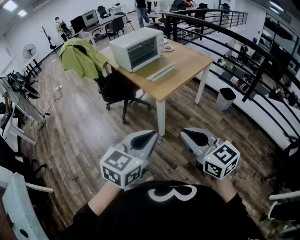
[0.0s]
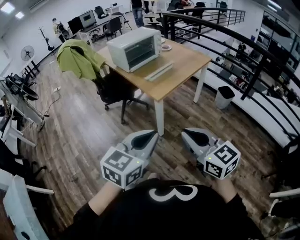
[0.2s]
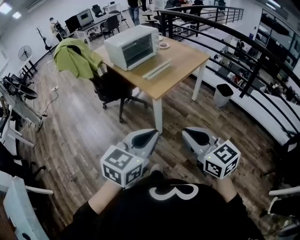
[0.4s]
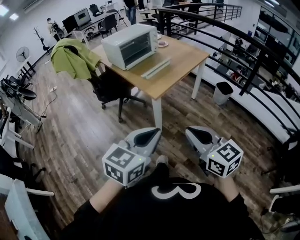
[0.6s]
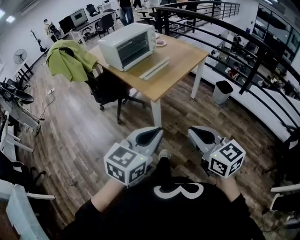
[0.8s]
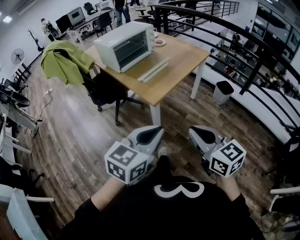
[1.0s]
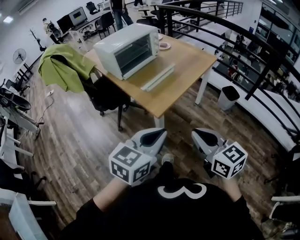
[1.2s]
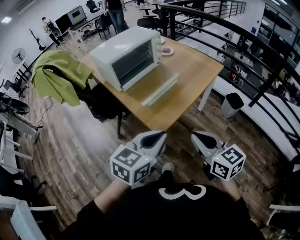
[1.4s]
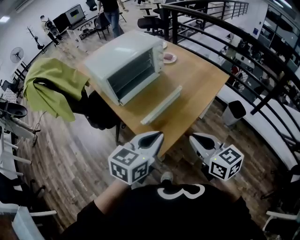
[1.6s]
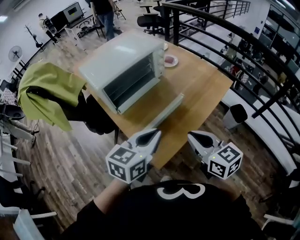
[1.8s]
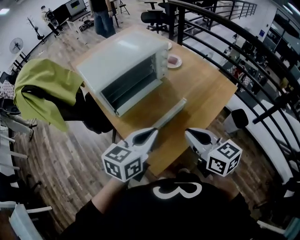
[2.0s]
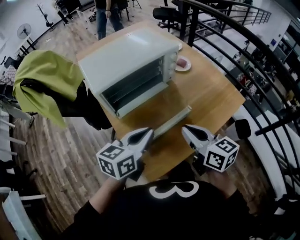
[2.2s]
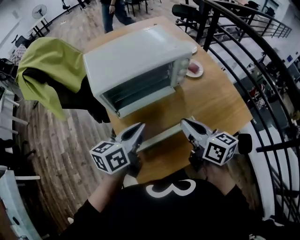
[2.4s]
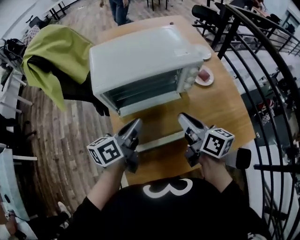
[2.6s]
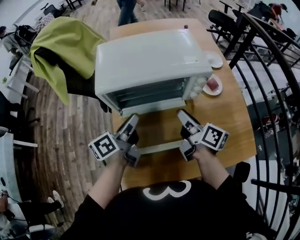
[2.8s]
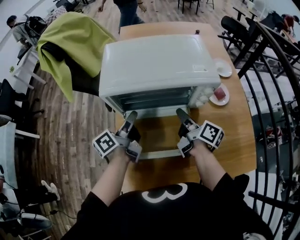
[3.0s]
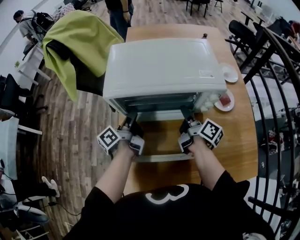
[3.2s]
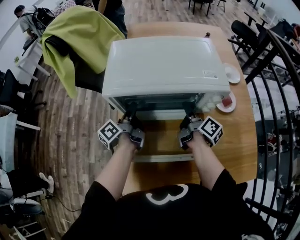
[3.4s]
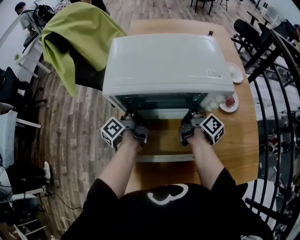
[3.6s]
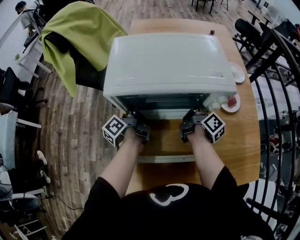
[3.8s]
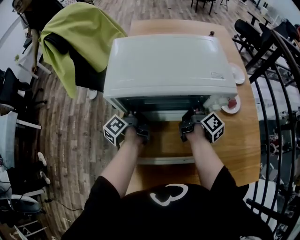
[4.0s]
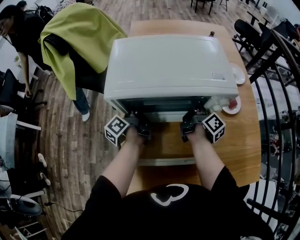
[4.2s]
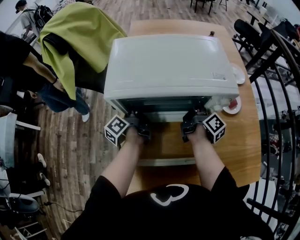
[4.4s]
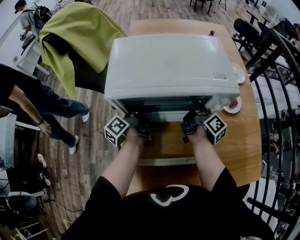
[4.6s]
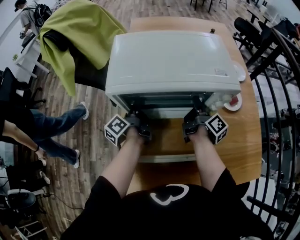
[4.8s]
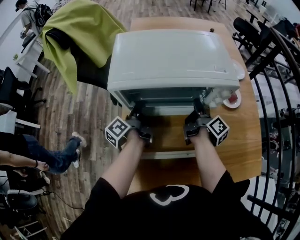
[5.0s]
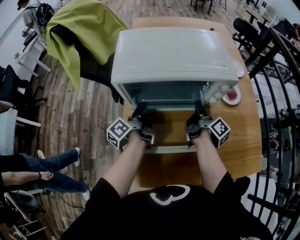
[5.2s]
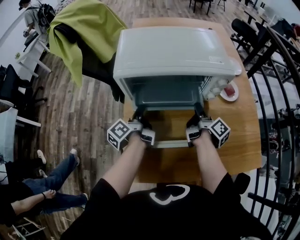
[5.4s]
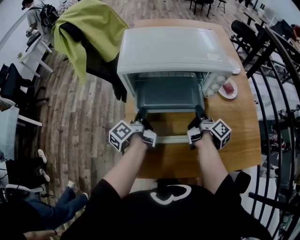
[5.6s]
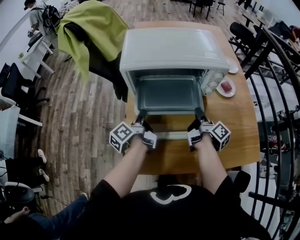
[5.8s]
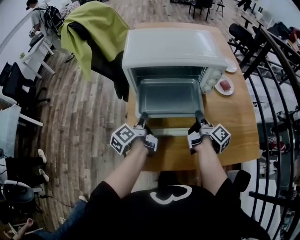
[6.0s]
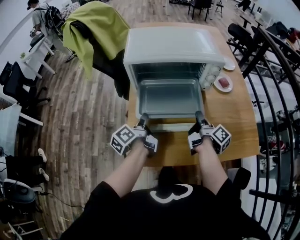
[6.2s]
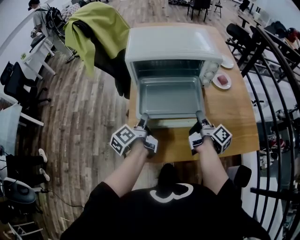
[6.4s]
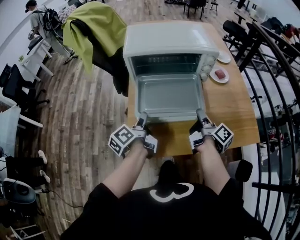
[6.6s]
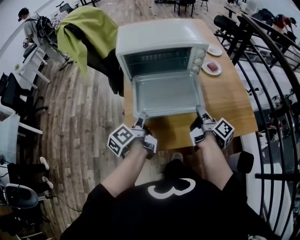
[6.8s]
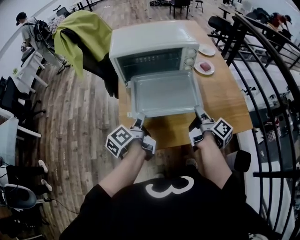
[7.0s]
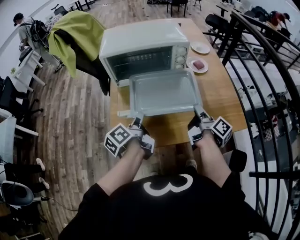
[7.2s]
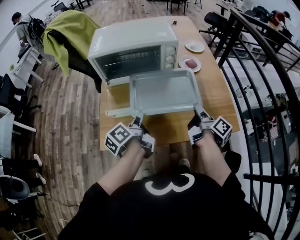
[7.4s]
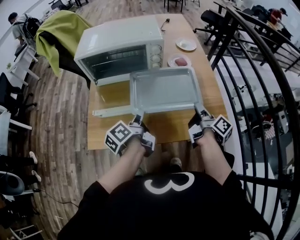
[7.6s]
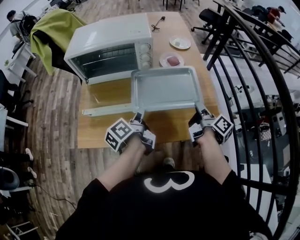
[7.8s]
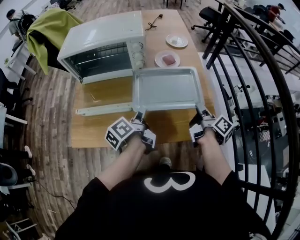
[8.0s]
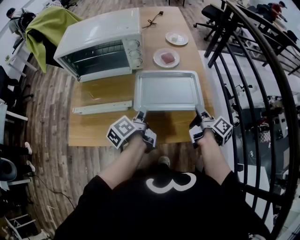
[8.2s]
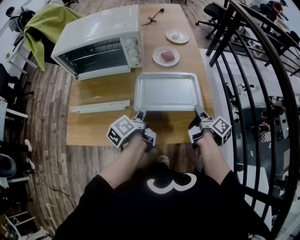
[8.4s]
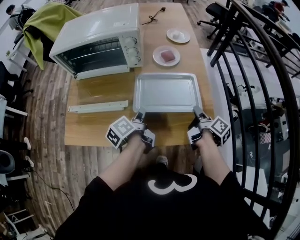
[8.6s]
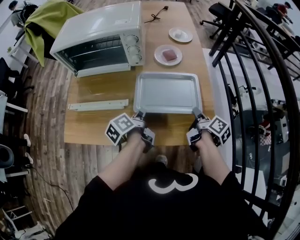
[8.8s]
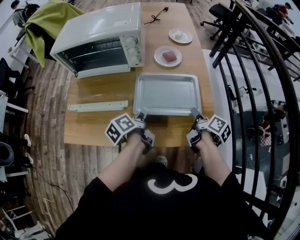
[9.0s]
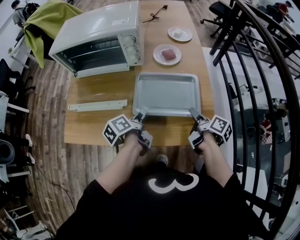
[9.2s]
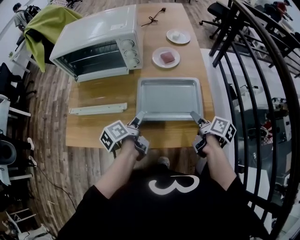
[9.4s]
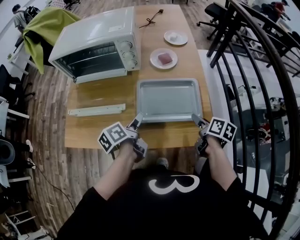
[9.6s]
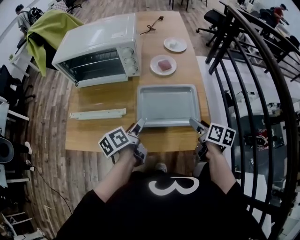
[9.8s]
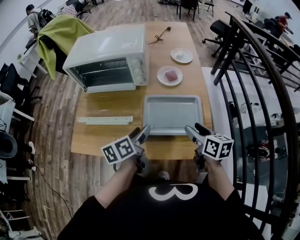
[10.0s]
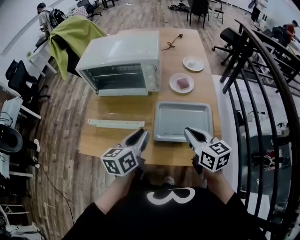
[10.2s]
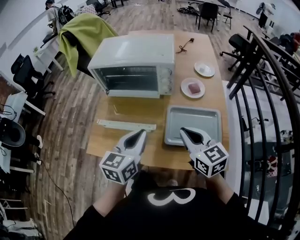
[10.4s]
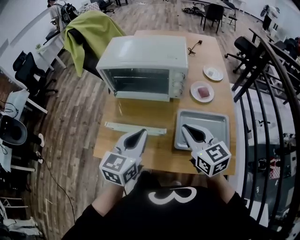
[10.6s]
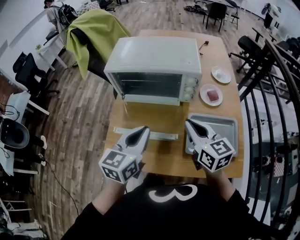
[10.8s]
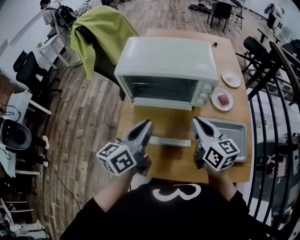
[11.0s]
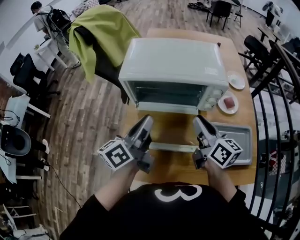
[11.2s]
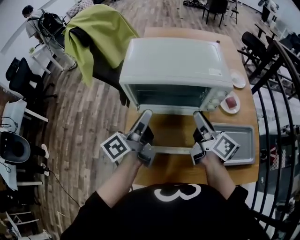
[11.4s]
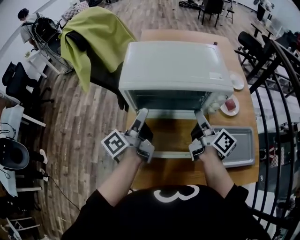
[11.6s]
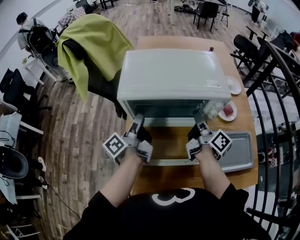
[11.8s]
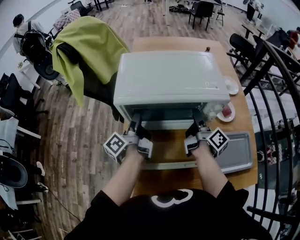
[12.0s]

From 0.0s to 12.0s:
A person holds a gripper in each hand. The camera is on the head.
From 0.0s to 1.6s: Both grippers are carried forward, about 50 cm.
From 1.6s to 3.0s: The left gripper moves approximately 40 cm, turns by approximately 90 degrees, and opens up. Meanwhile the right gripper moves about 50 cm, rotates around the line of its fingers by about 50 degrees, clockwise from behind, and opens its fingers.
From 3.0s to 4.4s: The left gripper travels forward, downward and to the left by about 15 cm, and swivels approximately 20 degrees. The right gripper goes some 10 cm forward and downward, and changes its angle by some 20 degrees.
From 4.4s to 6.0s: Both grippers move backward, approximately 20 cm.
From 6.0s to 7.6s: Both grippers move to the right and backward, roughly 30 cm.
From 7.6s to 9.0s: Both grippers travel together to the right and downward, roughly 15 cm. The right gripper changes its angle by approximately 20 degrees.
From 9.0s to 10.4s: The left gripper shifts some 20 cm upward and to the left, twists about 60 degrees clockwise, seen from behind, and opens and closes again. The right gripper is displaced to the left and upward by approximately 25 cm, rolls counterclockwise, seen from behind, by approximately 70 degrees, and closes its fingers.
From 10.4s to 12.0s: Both grippers travel together forward and to the left, about 35 cm. The left gripper twists approximately 70 degrees counterclockwise, seen from behind, and opens. The right gripper twists about 70 degrees clockwise, seen from behind, and opens its fingers.

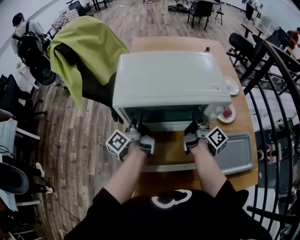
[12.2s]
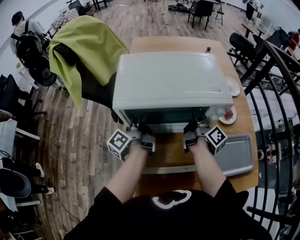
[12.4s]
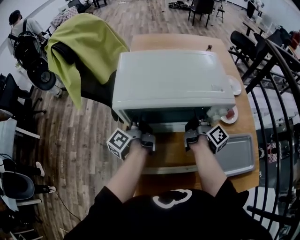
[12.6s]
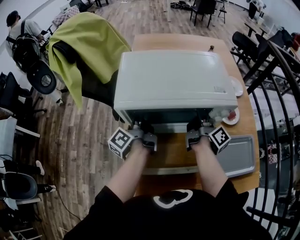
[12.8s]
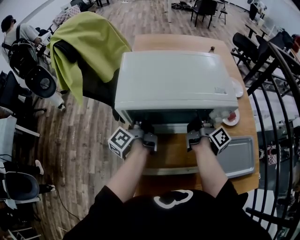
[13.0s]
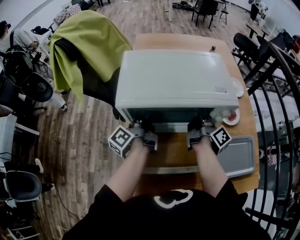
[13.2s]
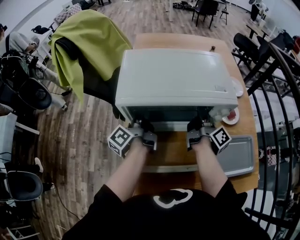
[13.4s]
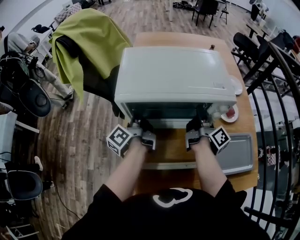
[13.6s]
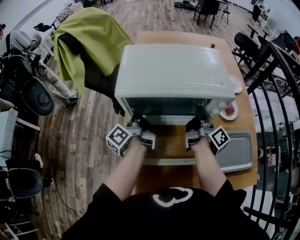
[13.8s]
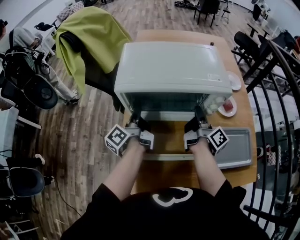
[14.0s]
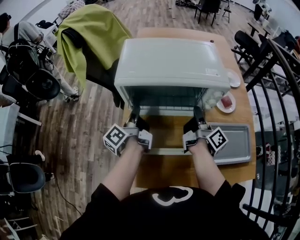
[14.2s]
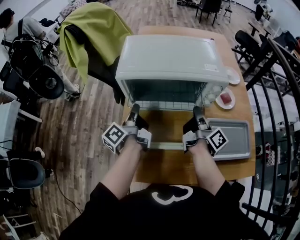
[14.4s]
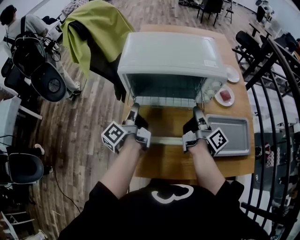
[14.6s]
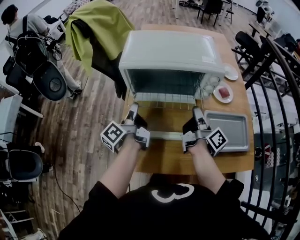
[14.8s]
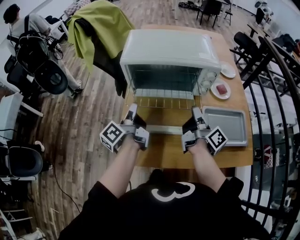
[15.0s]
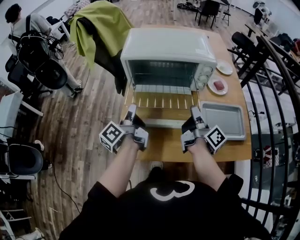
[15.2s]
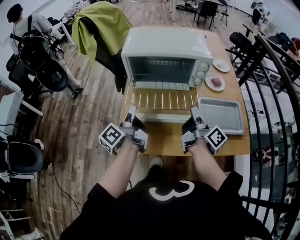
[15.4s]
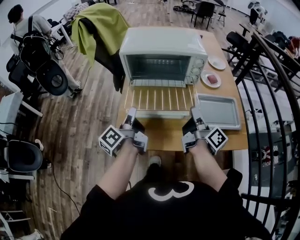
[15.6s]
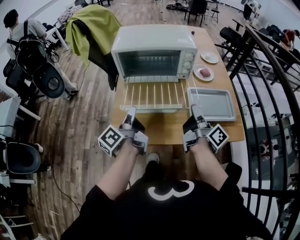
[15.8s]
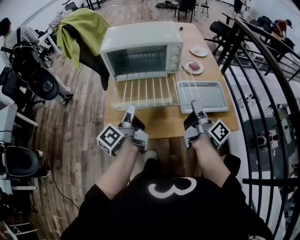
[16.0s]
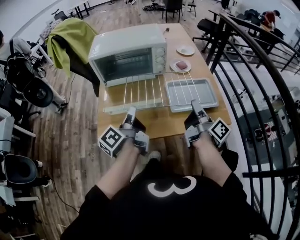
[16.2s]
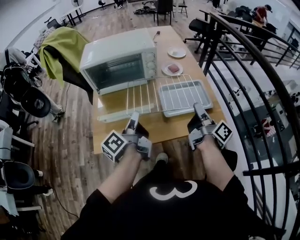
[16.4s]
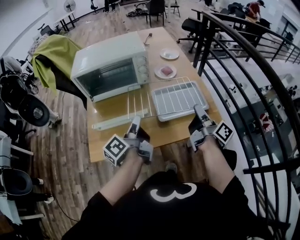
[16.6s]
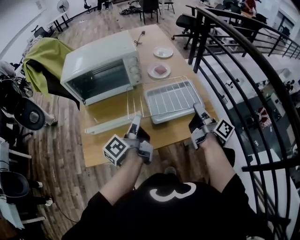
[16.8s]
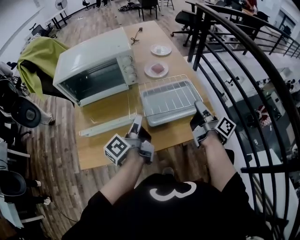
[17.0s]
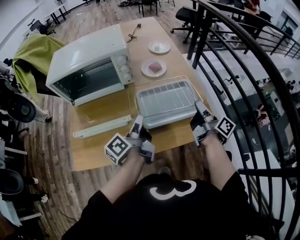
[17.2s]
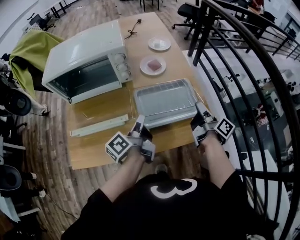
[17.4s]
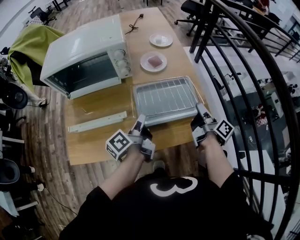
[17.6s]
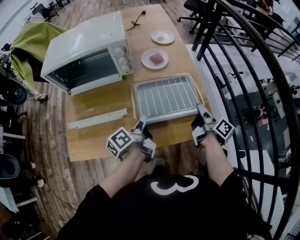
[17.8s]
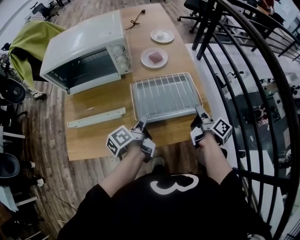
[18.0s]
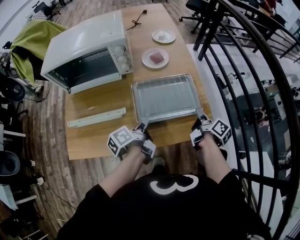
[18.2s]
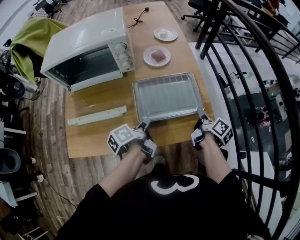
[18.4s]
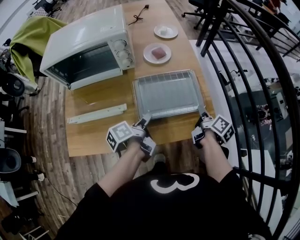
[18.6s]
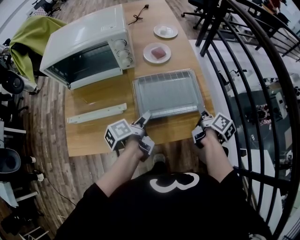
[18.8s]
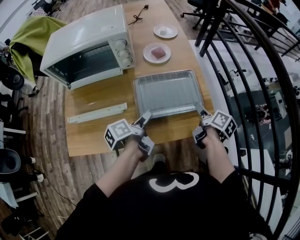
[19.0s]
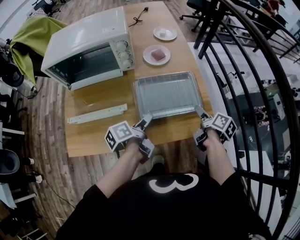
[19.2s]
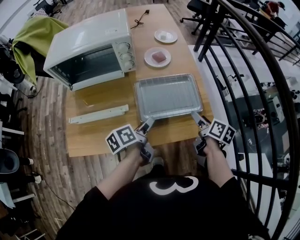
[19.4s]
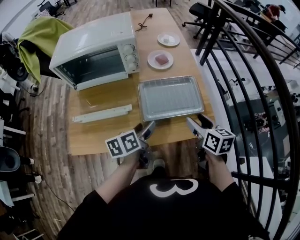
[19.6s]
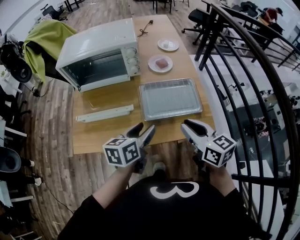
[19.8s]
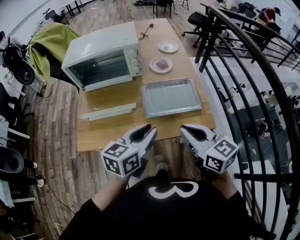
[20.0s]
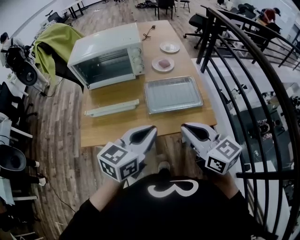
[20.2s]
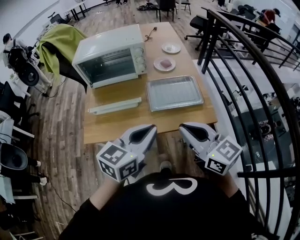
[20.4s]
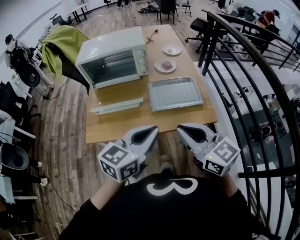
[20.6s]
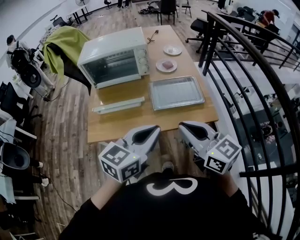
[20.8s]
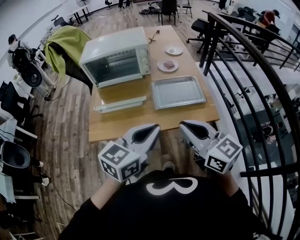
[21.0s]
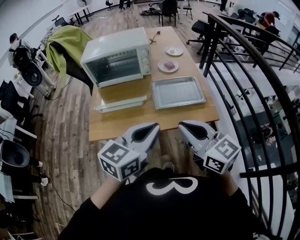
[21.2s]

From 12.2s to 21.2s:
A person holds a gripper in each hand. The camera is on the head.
From 12.2s to 13.8s: The right gripper closes its fingers; the left gripper closes.
From 13.8s to 15.2s: The two grippers go about 20 cm backward.
From 15.2s to 16.6s: The two grippers go some 25 cm to the right and backward.
From 16.6s to 18.2s: The right gripper goes about 25 cm downward, to the right and forward, and turns by approximately 30 degrees. The left gripper moves to the right, downward and forward, about 25 cm, and turns by roughly 30 degrees.
From 18.2s to 19.8s: The right gripper travels upward, backward and to the left by some 25 cm, twists roughly 60 degrees counterclockwise, seen from behind, and opens and closes again. The left gripper shifts approximately 15 cm upward and backward, twists about 50 degrees clockwise, seen from behind, and opens its fingers.
From 19.8s to 21.2s: The left gripper moves backward and upward, about 20 cm, changes its angle by some 30 degrees, and closes up. Meanwhile the right gripper travels backward, upward and to the left by about 20 cm.

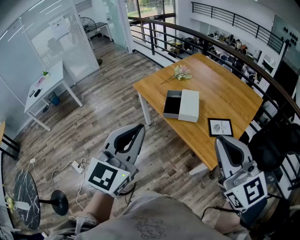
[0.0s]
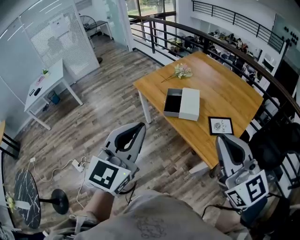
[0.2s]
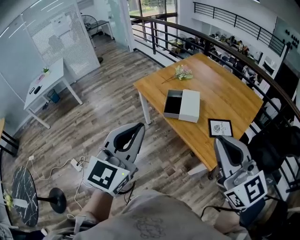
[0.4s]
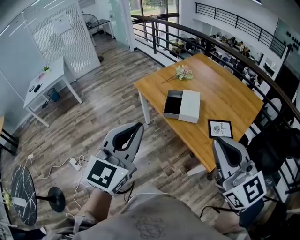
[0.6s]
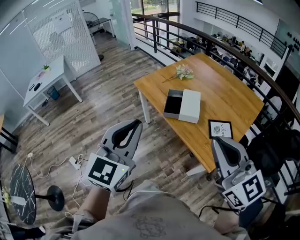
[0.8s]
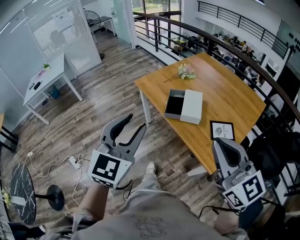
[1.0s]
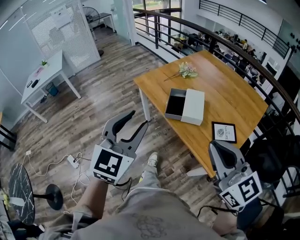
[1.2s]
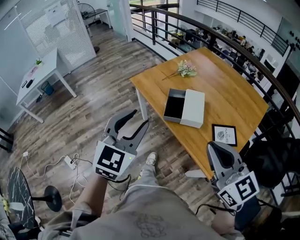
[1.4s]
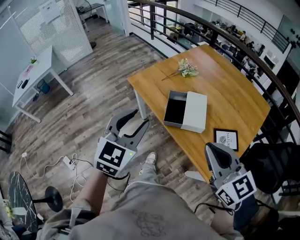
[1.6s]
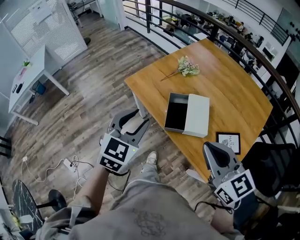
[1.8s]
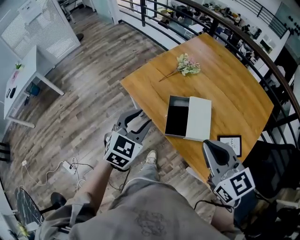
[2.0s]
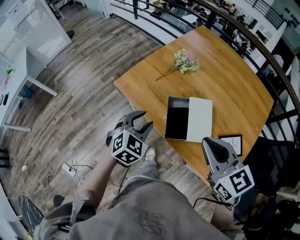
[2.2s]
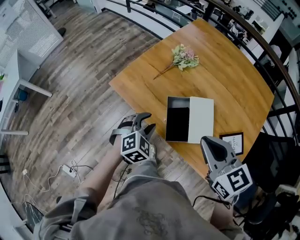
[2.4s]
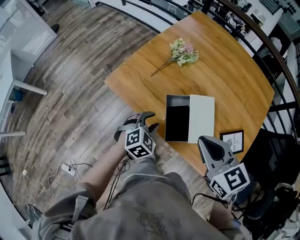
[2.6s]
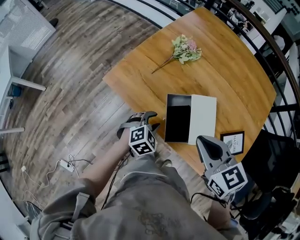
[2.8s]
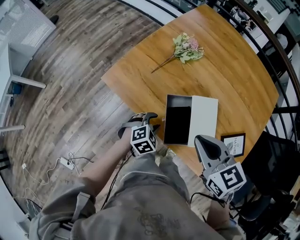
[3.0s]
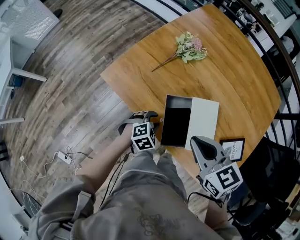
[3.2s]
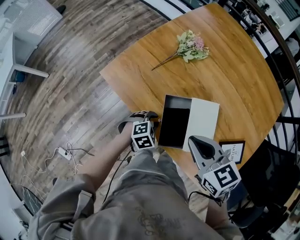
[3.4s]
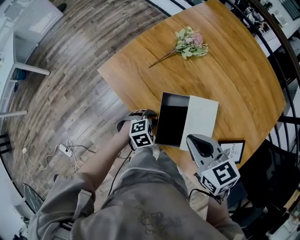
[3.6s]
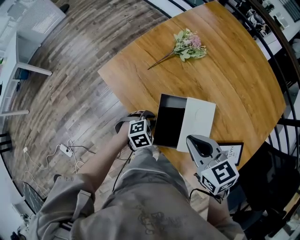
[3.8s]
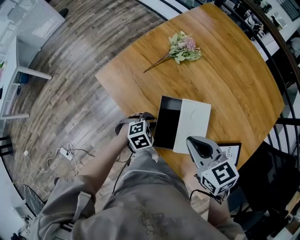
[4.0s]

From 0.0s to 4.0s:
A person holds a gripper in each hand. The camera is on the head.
From 0.0s to 1.4s: Both grippers move forward and downward, some 15 cm. The left gripper opens its fingers.
From 1.4s to 2.6s: The right gripper shifts about 30 cm forward and downward, and changes its angle by roughly 30 degrees. Meanwhile the left gripper heads downward and forward, covering about 40 cm, and tilts its fingers about 40 degrees downward.
From 2.6s to 4.0s: The left gripper heads downward and to the right, covering approximately 10 cm, and closes up. The right gripper heads downward, covering some 10 cm.
